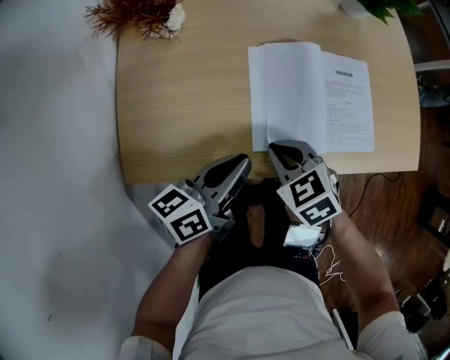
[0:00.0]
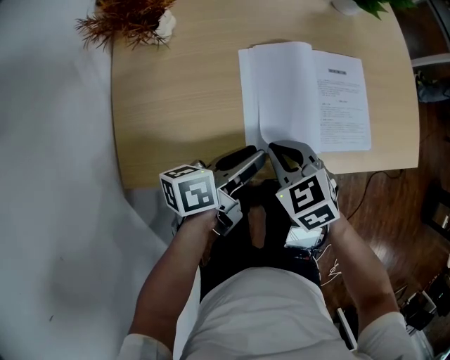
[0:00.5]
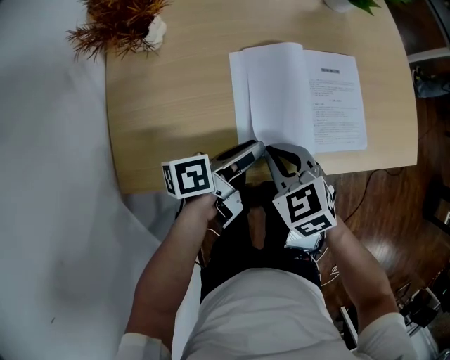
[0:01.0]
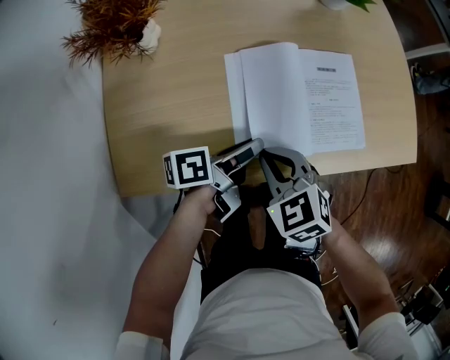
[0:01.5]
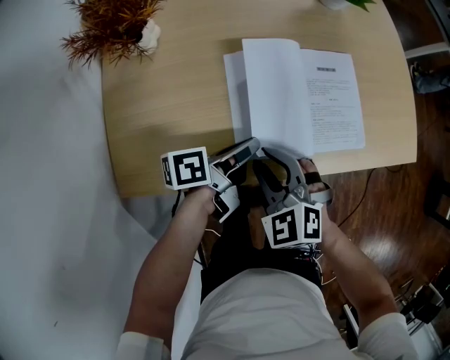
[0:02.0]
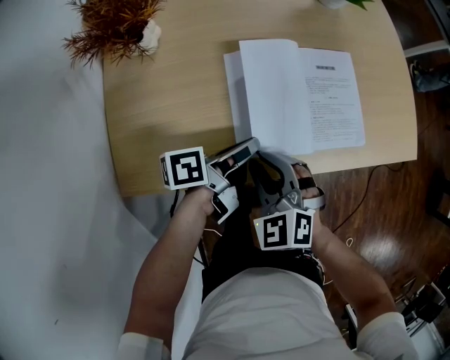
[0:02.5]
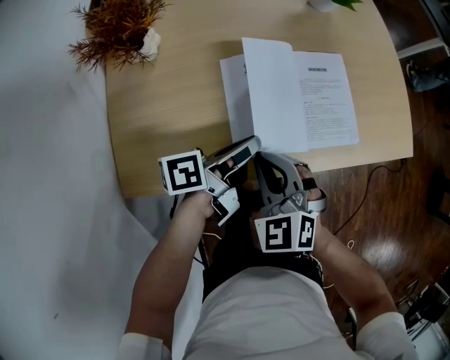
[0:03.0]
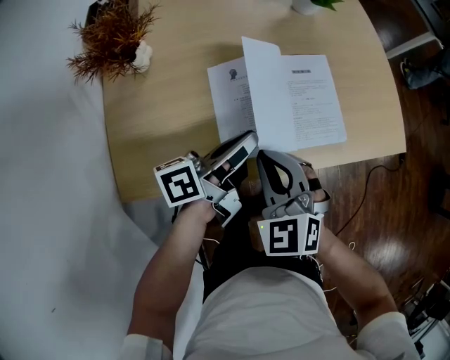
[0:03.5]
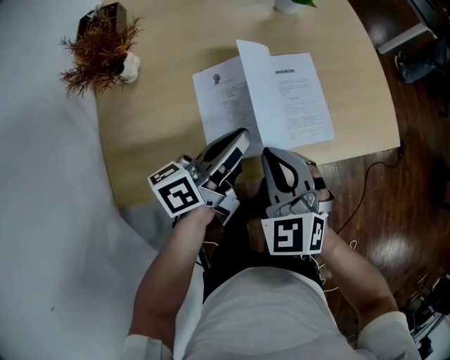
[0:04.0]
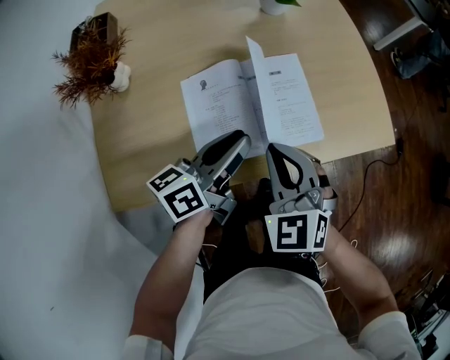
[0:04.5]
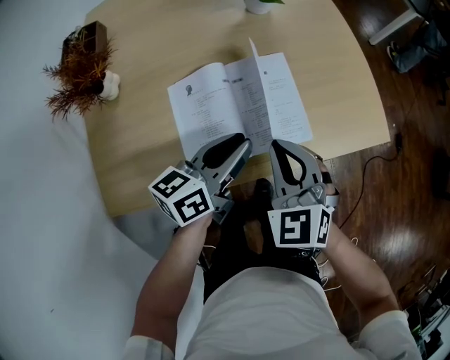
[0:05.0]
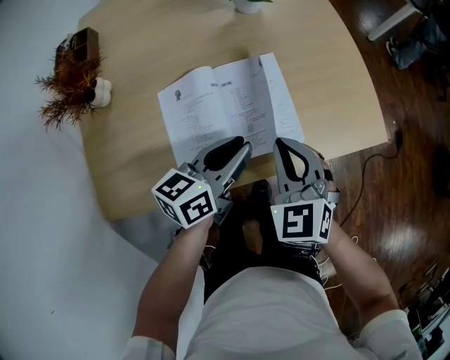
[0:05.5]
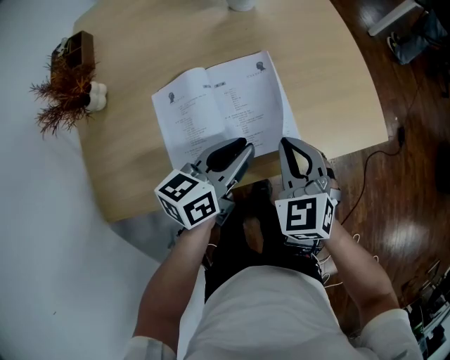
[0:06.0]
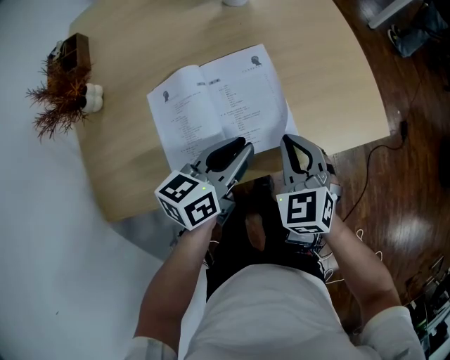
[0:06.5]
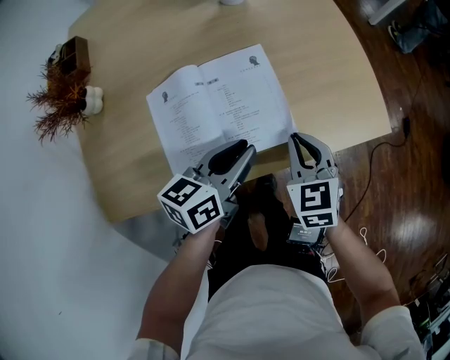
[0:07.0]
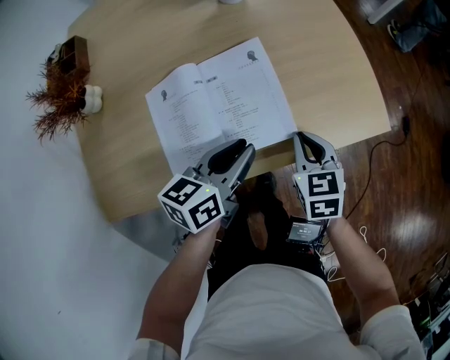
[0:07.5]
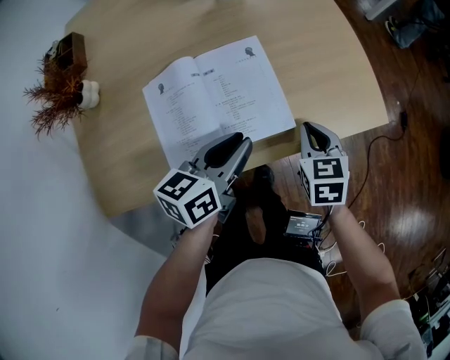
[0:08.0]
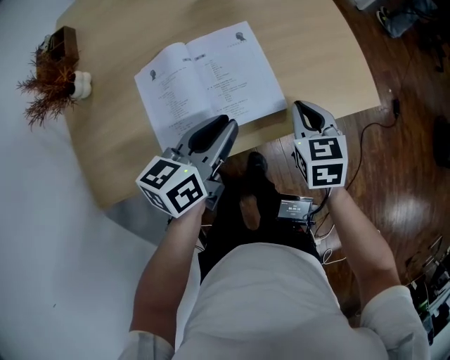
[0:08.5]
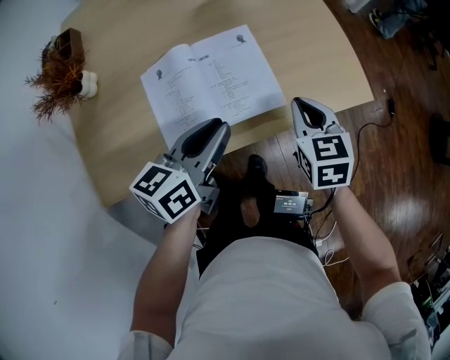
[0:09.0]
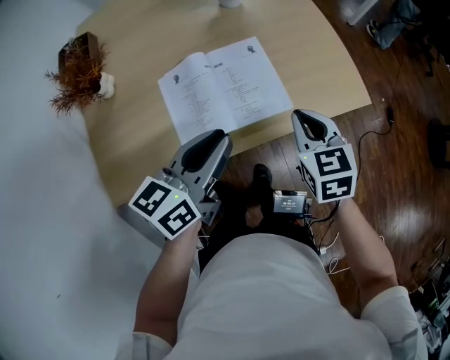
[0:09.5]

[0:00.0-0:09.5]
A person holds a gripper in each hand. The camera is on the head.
0:00.0 to 0:02.0: The right gripper turns by approximately 20 degrees, and opens its fingers. Meanwhile the left gripper travels to the right and forward by roughly 10 cm, rotates about 30 degrees, and opens, then closes again.
0:02.0 to 0:04.0: The right gripper is displaced upward and to the right by roughly 10 cm, swivels approximately 20 degrees, and closes up; the left gripper goes some 10 cm upward, and rotates roughly 30 degrees.
0:04.0 to 0:05.5: The left gripper moves to the right, approximately 10 cm, and turns by roughly 30 degrees, while the right gripper heads to the right and forward, covering some 15 cm.
0:05.5 to 0:07.5: The right gripper goes approximately 15 cm downward and to the right, and turns by about 30 degrees.
0:07.5 to 0:09.5: The left gripper travels upward and backward by roughly 15 cm. The right gripper moves upward, approximately 10 cm.

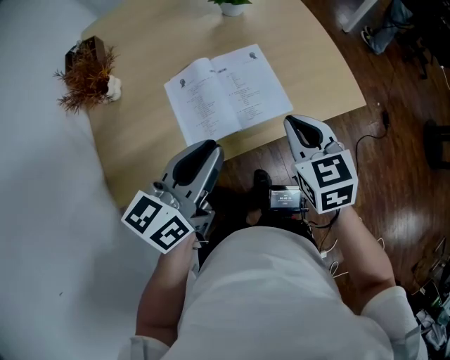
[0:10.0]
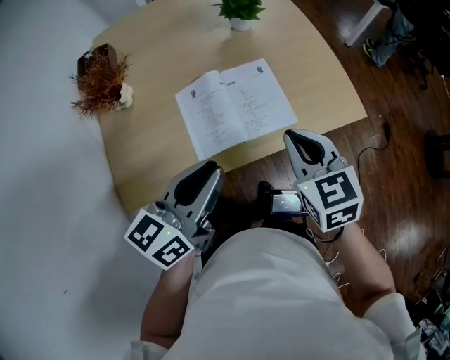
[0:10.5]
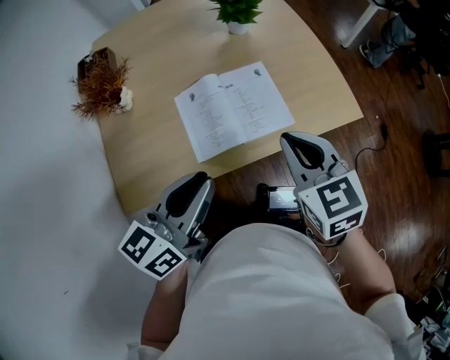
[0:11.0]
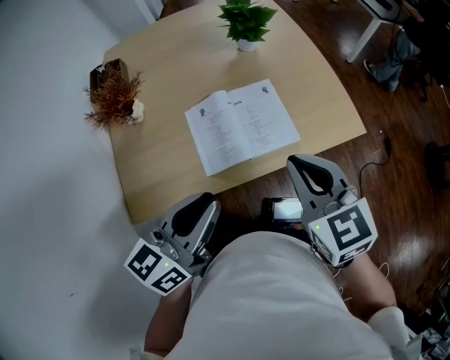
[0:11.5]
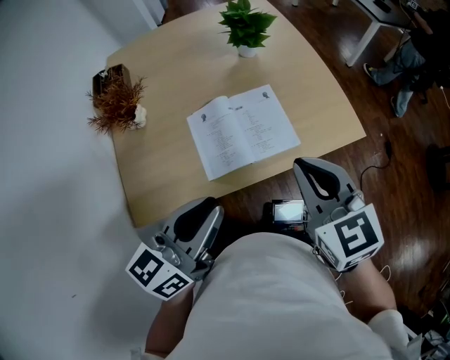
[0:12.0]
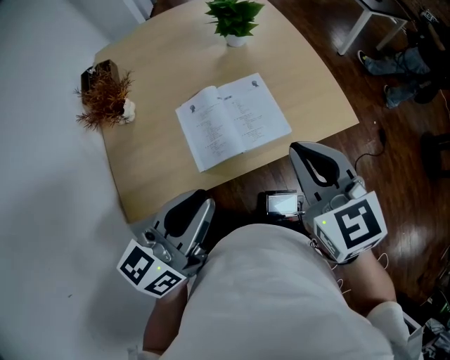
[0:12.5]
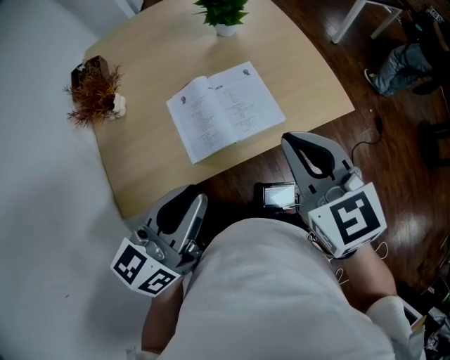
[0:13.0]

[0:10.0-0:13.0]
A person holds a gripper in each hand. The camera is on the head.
0:10.0 to 0:11.5: The right gripper travels upward and backward by approximately 10 cm. Meanwhile the left gripper heads backward and upward, covering some 10 cm.
0:11.5 to 0:13.0: The grippers make only small movements.

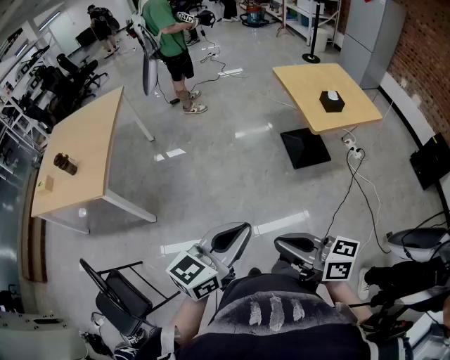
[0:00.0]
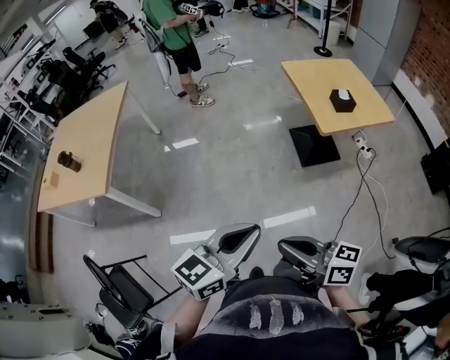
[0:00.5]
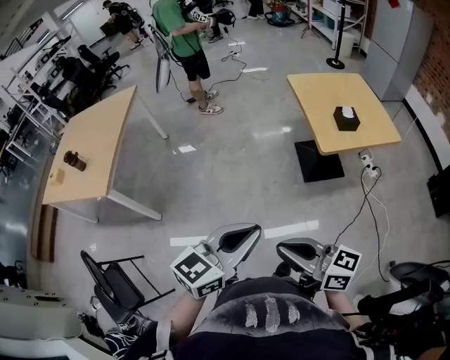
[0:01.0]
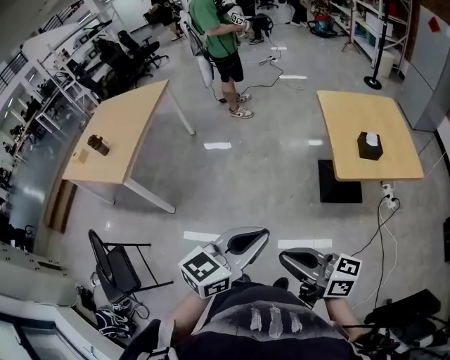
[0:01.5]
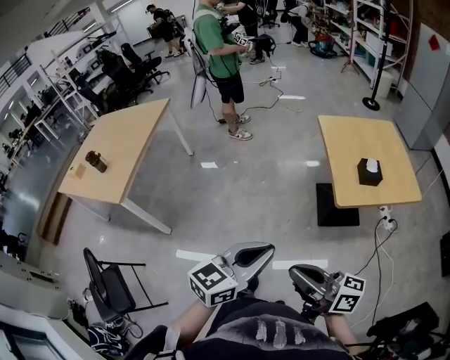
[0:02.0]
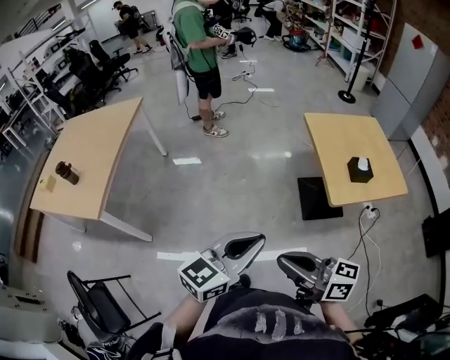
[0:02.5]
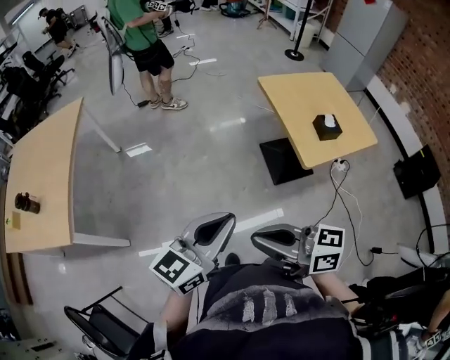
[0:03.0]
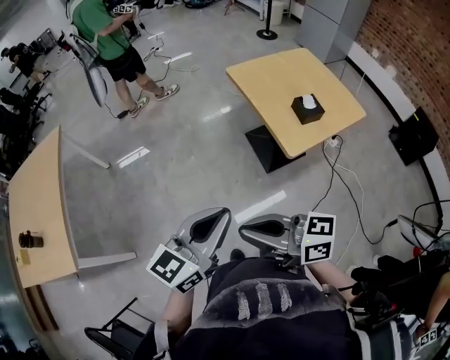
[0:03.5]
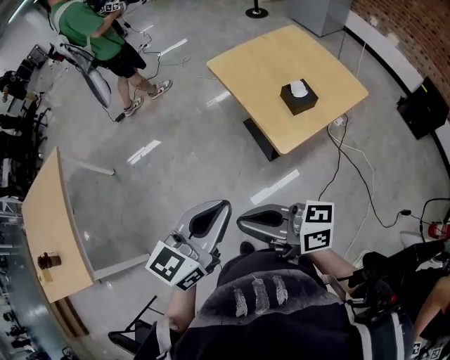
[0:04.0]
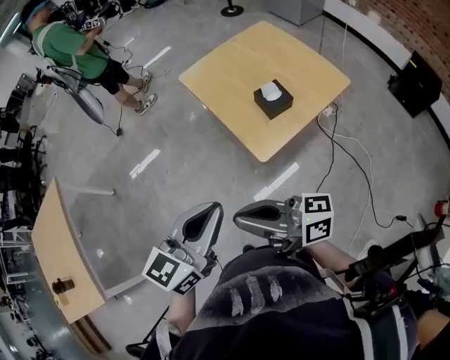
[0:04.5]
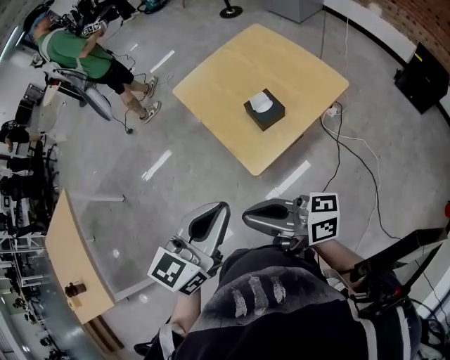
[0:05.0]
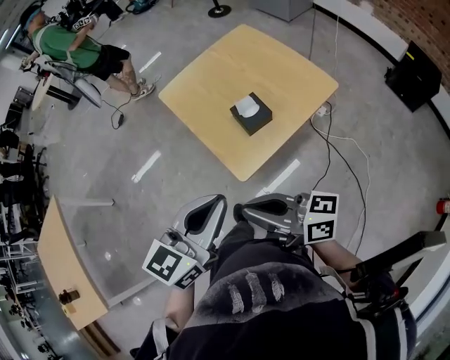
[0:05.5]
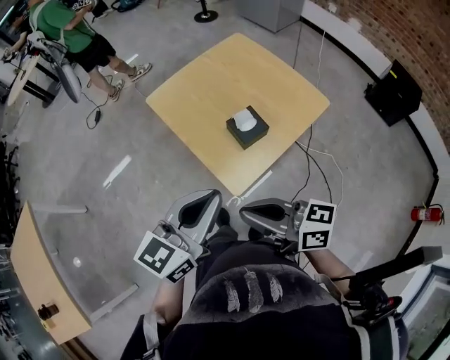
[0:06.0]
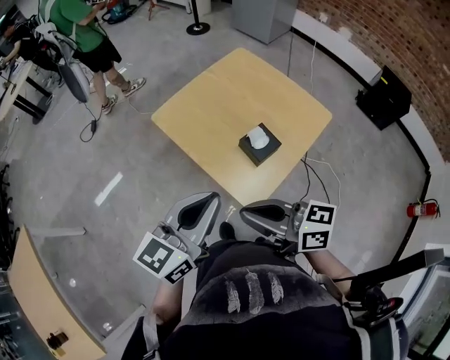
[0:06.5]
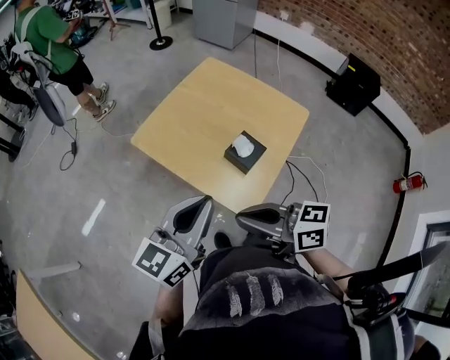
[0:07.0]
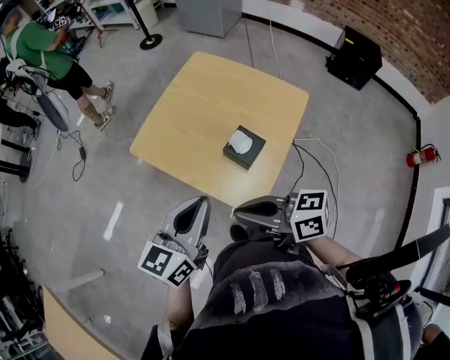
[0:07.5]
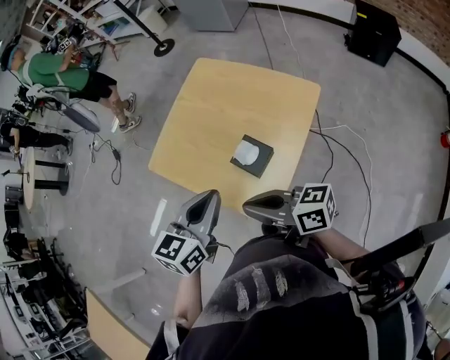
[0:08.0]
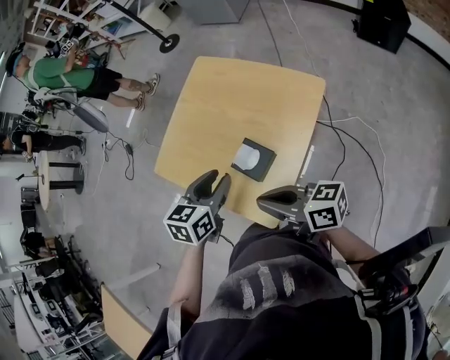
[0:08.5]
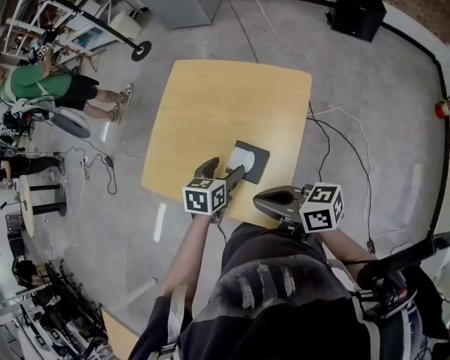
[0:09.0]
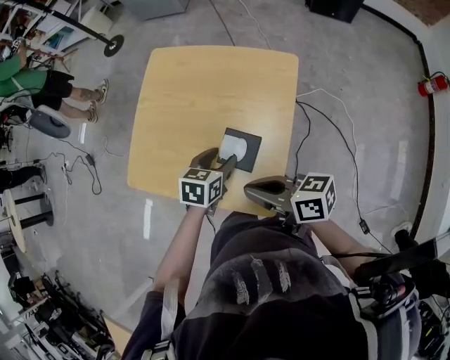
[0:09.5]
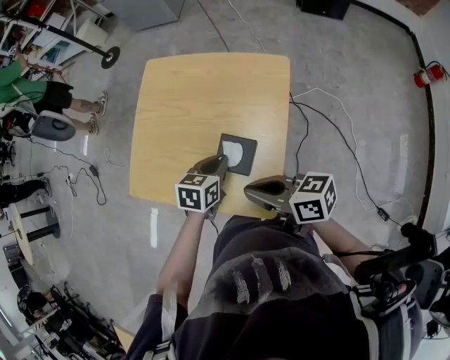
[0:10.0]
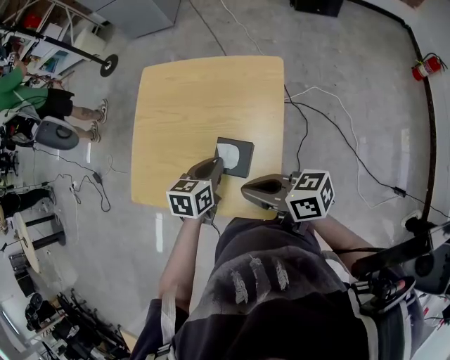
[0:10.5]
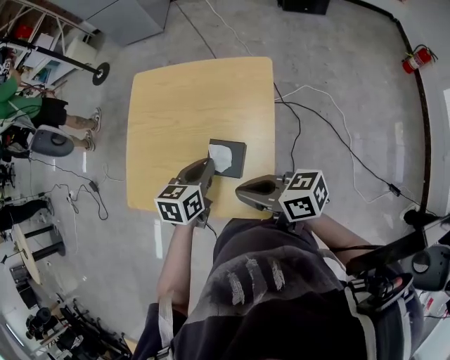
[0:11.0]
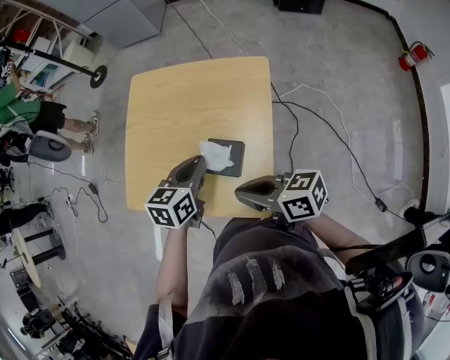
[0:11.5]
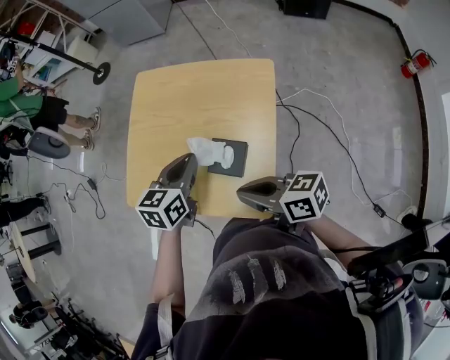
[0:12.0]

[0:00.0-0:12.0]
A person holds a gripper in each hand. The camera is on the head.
0:00.0 to 0:02.0: Both grippers travel together to the right and forward, some 25 cm.
0:02.0 to 0:04.0: Both grippers travel together forward, about 20 cm.
0:04.0 to 0:06.0: Both grippers travel together to the right and forward, some 25 cm.
0:06.0 to 0:08.0: The two grippers go roughly 15 cm forward.
0:08.0 to 0:10.0: The left gripper moves downward and forward, about 20 cm, rotates approximately 30 degrees, and opens and closes again. The right gripper is displaced downward by approximately 5 cm, and turns by about 20 degrees.
0:10.0 to 0:12.0: The left gripper moves upward, roughly 10 cm.

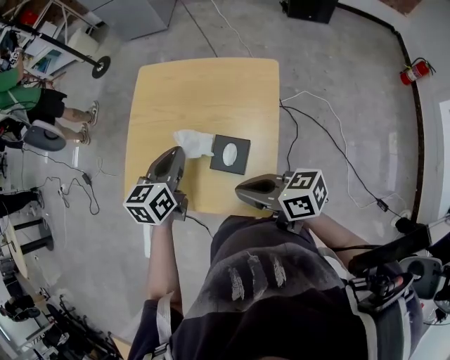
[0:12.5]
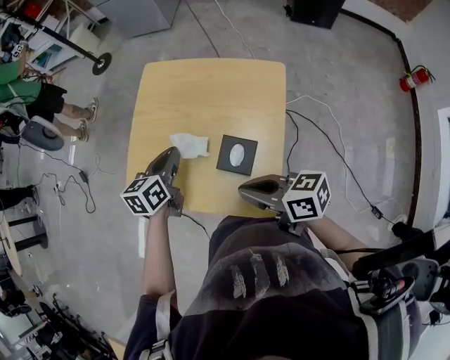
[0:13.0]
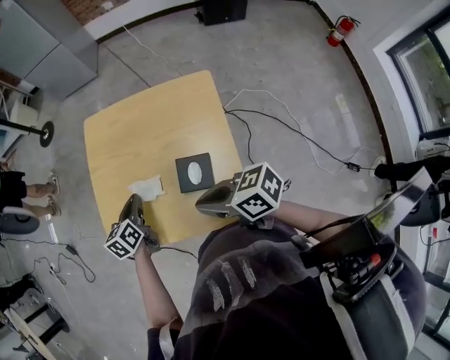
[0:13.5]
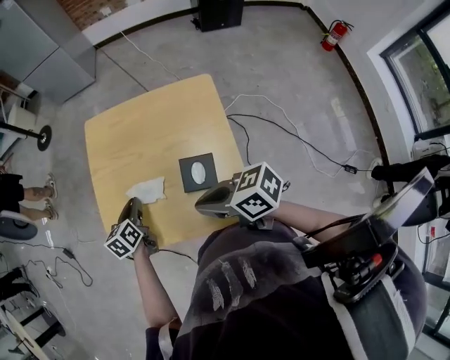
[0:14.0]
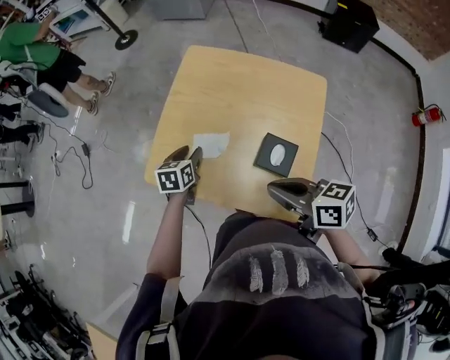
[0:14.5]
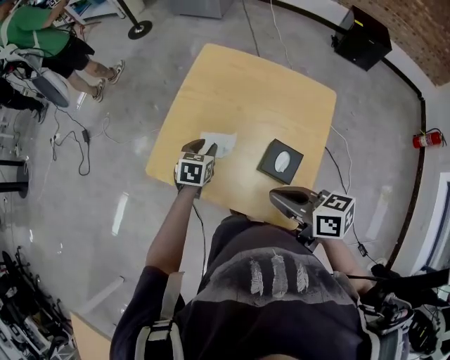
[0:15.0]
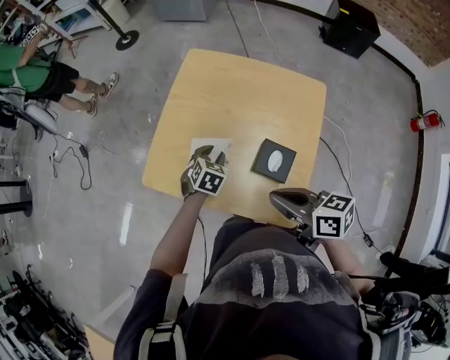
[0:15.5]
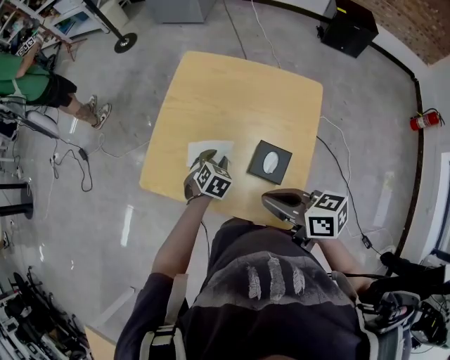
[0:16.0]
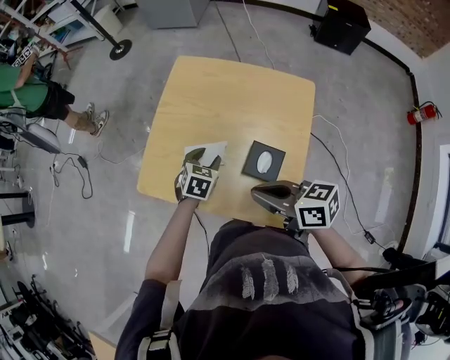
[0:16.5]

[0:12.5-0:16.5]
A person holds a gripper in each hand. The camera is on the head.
0:12.5 to 0:14.5: The right gripper moves to the left, some 5 cm. Meanwhile the left gripper moves to the left and downward, about 20 cm, and opens its fingers.
0:14.5 to 0:16.5: The left gripper moves to the right, about 10 cm, and swivels approximately 30 degrees.
